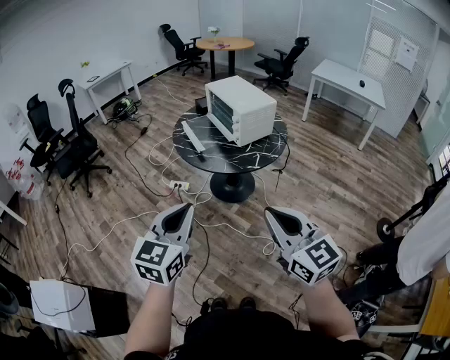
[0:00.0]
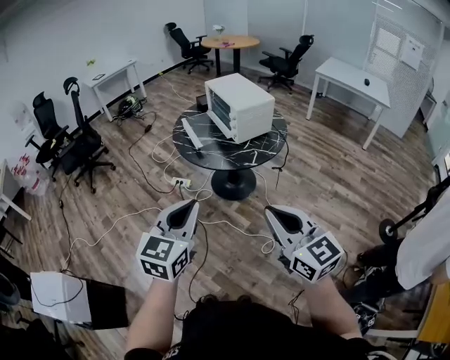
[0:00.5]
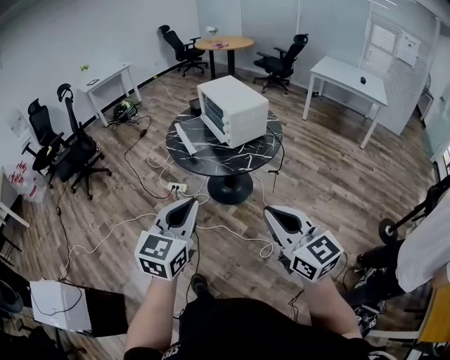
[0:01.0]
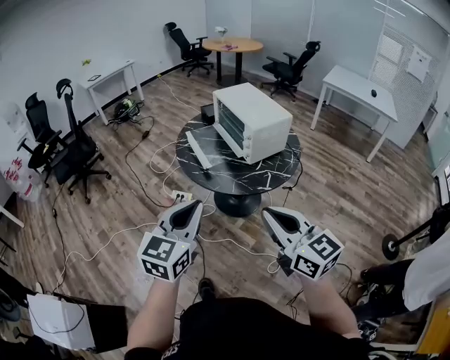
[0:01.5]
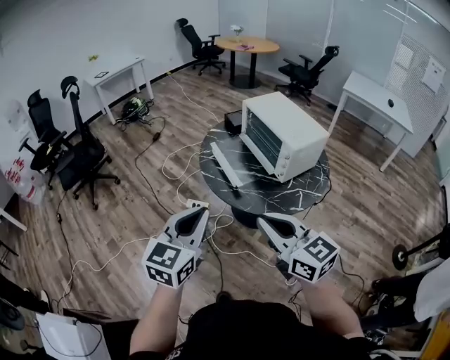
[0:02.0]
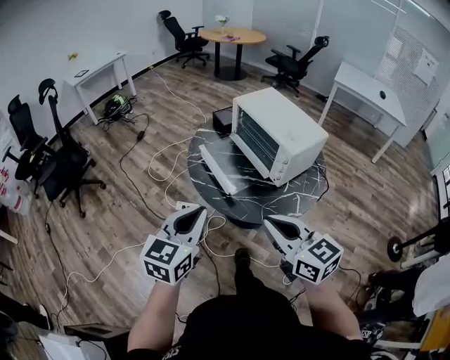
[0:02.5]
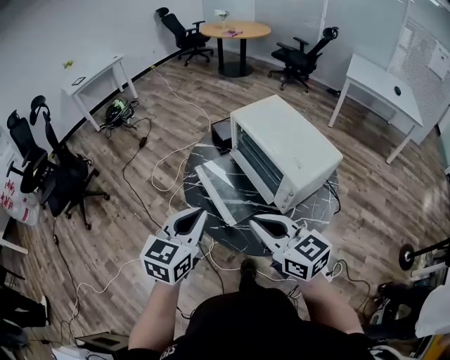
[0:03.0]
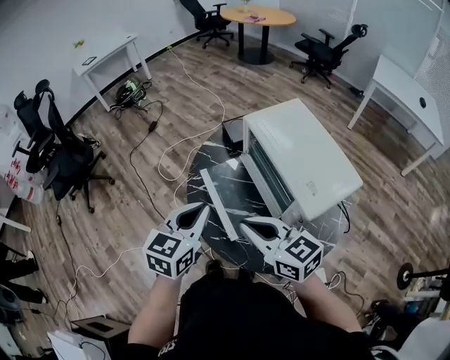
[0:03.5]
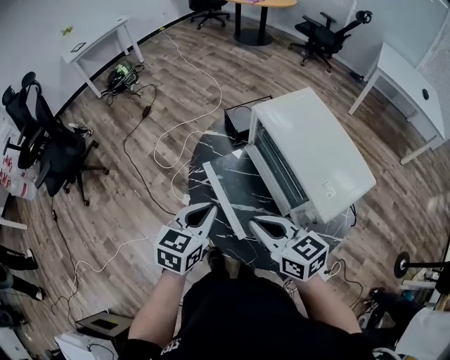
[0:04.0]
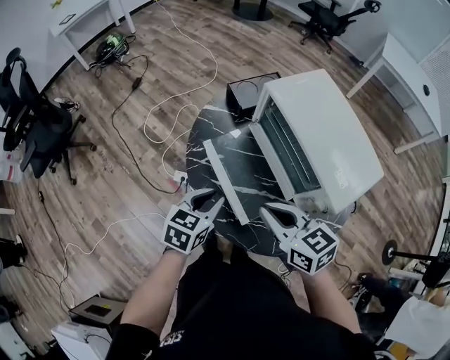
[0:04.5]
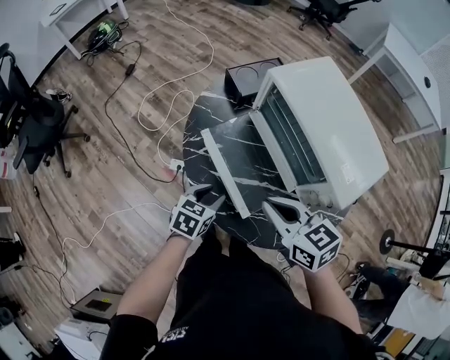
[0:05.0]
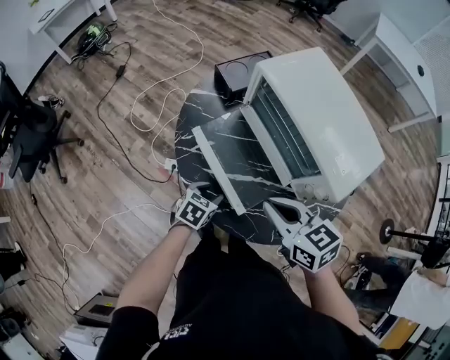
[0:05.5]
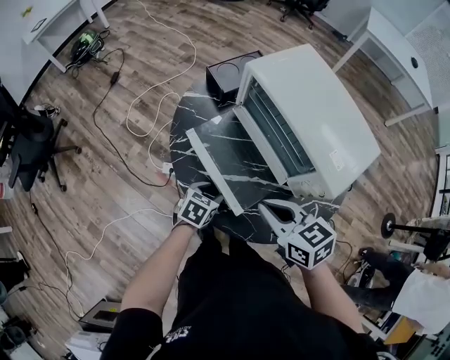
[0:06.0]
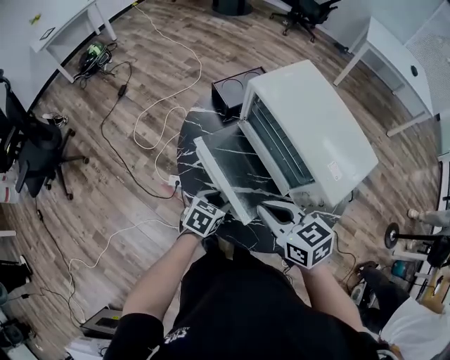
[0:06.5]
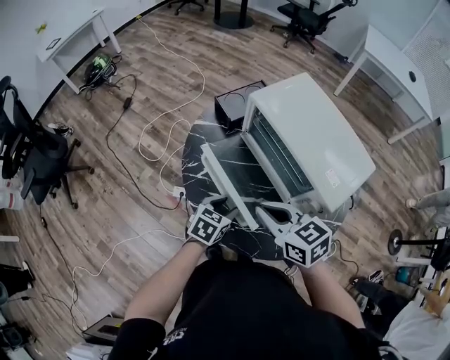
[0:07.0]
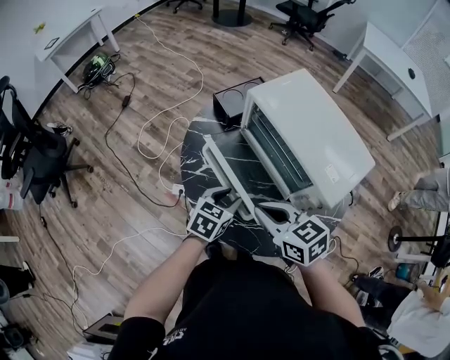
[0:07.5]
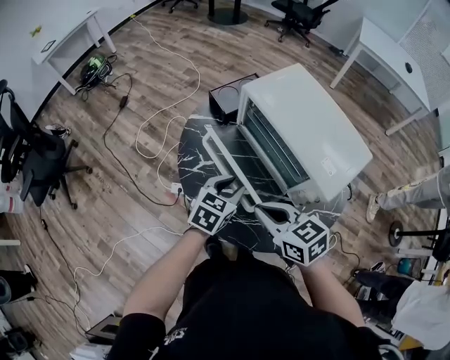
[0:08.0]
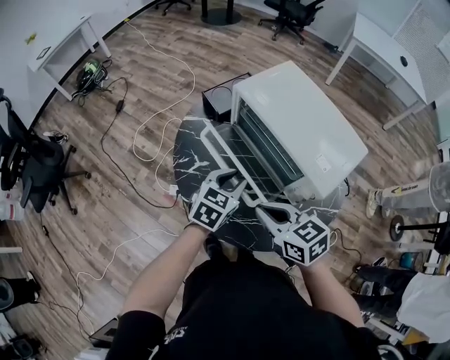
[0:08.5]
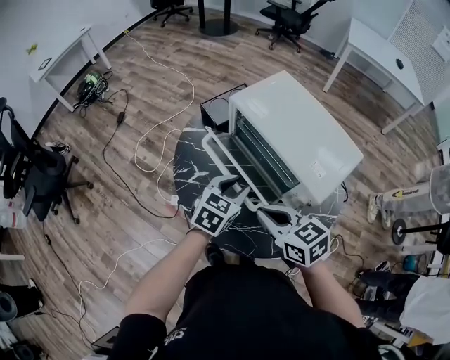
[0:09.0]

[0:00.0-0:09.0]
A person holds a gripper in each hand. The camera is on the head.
0:00.0 to 0:02.0: The left gripper moves forward, some 25 cm. The right gripper travels forward and to the left by about 35 cm.
0:02.0 to 0:04.5: The two grippers go roughly 40 cm forward and downward. The right gripper swivels roughly 20 degrees, while the left gripper turns by approximately 30 degrees, and opens up.
0:04.5 to 0:07.0: The left gripper goes about 10 cm downward and to the right, and opens.
0:07.0 to 0:09.0: The left gripper is displaced upward and to the right by some 10 cm.

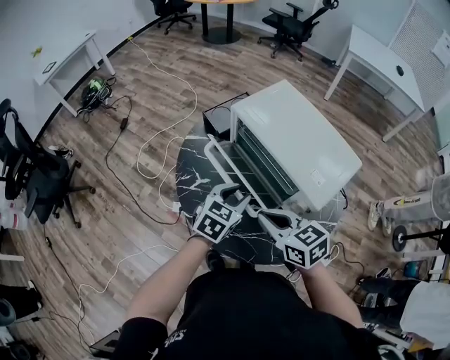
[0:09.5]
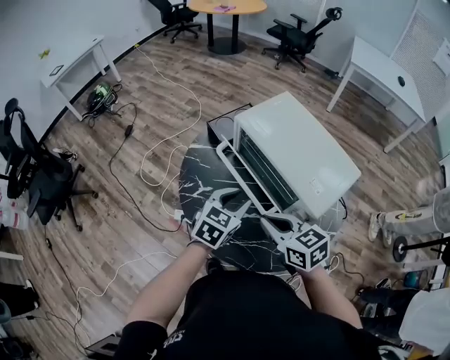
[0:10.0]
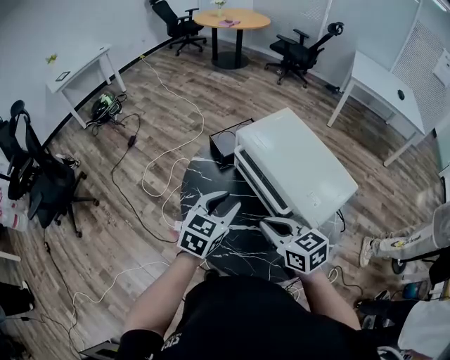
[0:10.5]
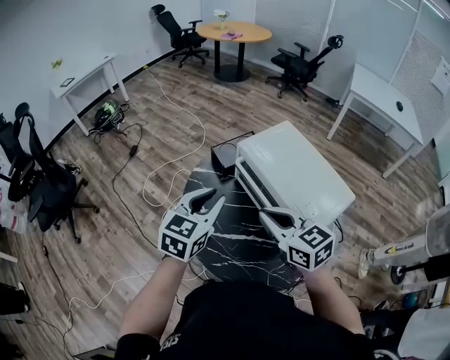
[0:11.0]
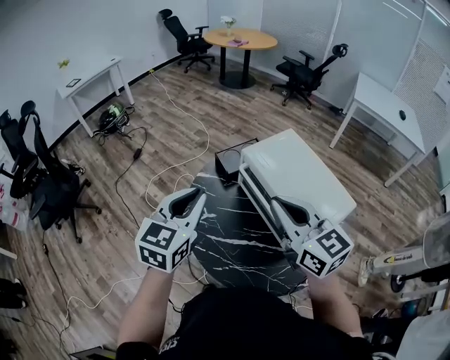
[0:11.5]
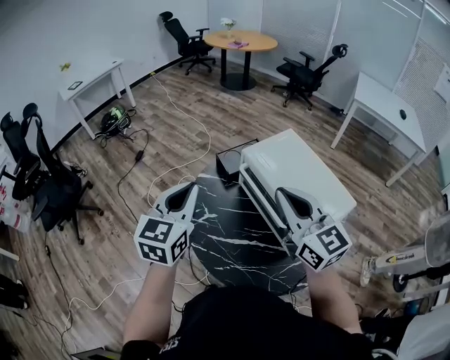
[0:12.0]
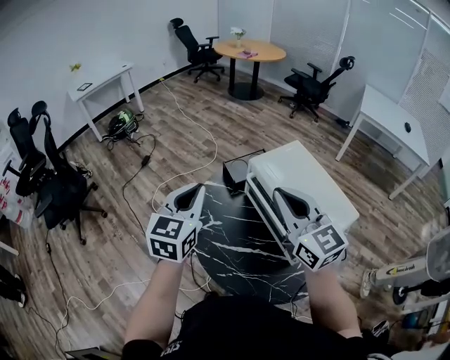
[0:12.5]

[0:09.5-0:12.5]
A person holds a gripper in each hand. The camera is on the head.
0:09.5 to 0:11.0: The right gripper heads upward and forward, covering about 10 cm, while the left gripper heads upward and to the left, covering approximately 15 cm.
0:11.0 to 0:12.5: The right gripper moves upward, about 10 cm, and turns by some 20 degrees. Meanwhile the left gripper shifts some 10 cm to the left and upward.

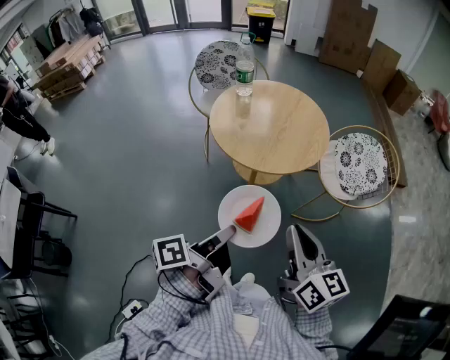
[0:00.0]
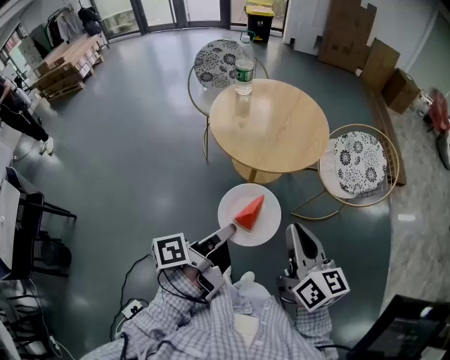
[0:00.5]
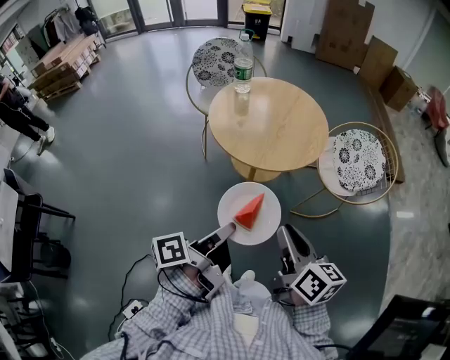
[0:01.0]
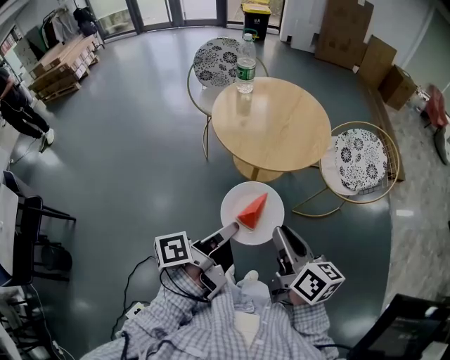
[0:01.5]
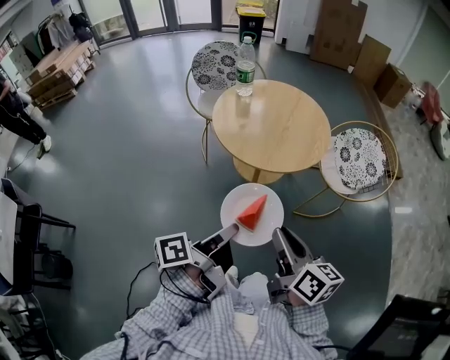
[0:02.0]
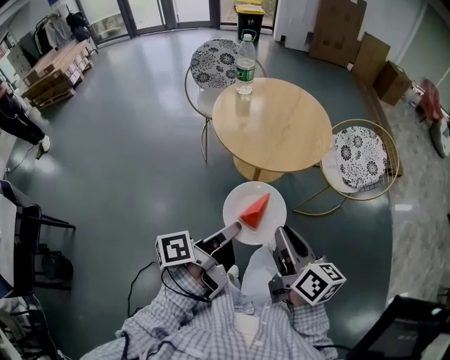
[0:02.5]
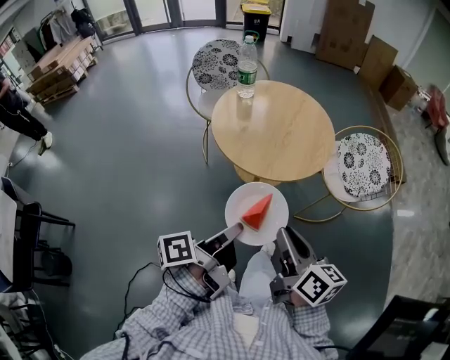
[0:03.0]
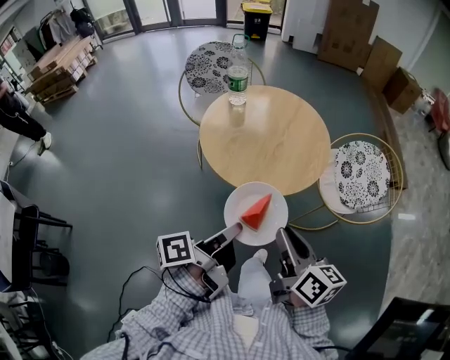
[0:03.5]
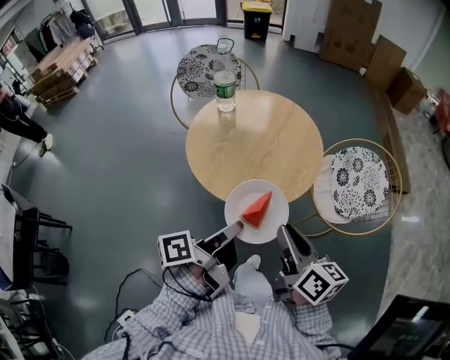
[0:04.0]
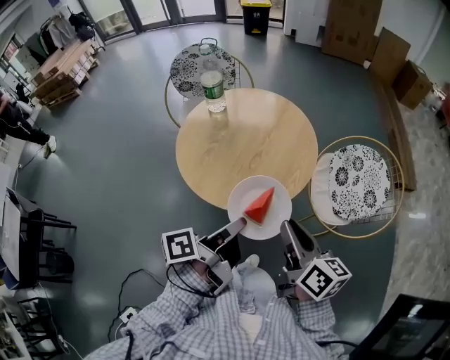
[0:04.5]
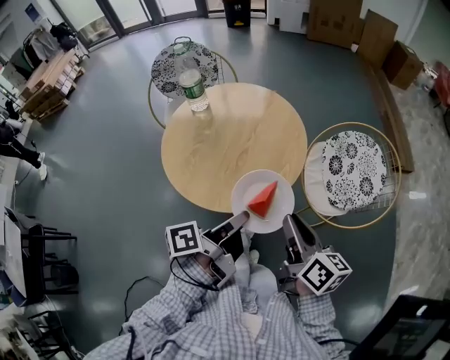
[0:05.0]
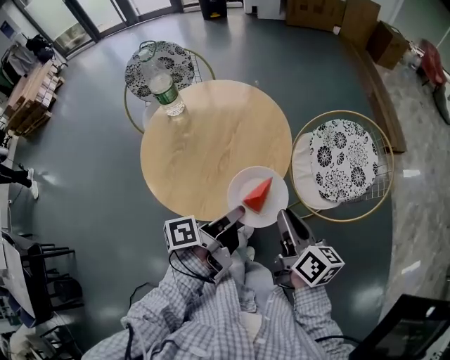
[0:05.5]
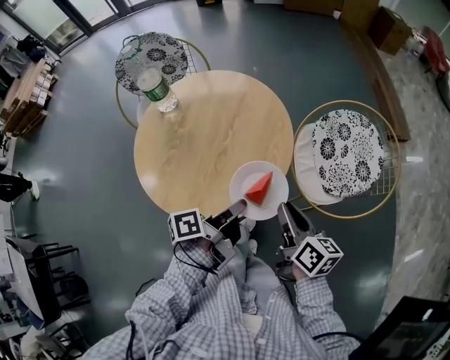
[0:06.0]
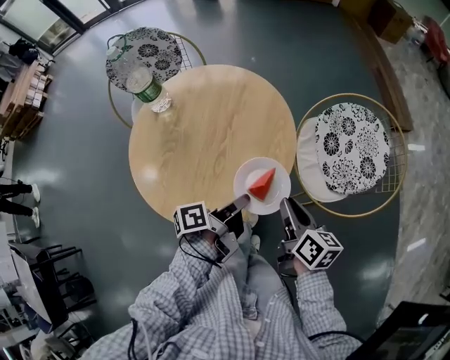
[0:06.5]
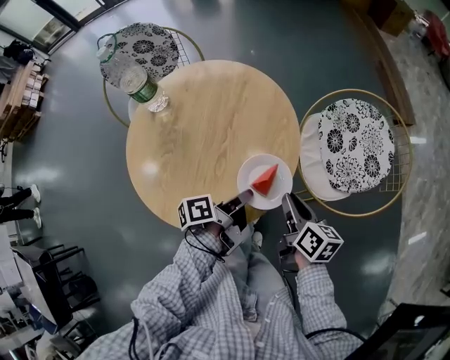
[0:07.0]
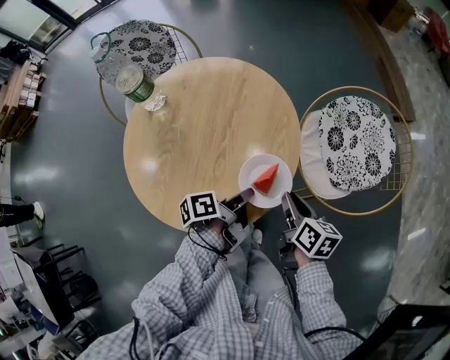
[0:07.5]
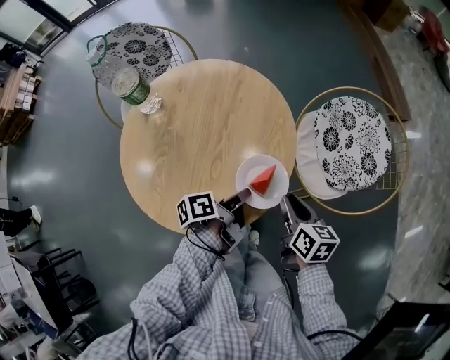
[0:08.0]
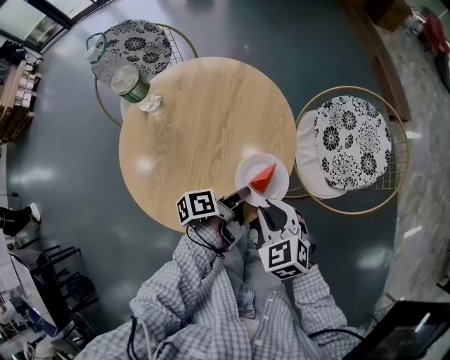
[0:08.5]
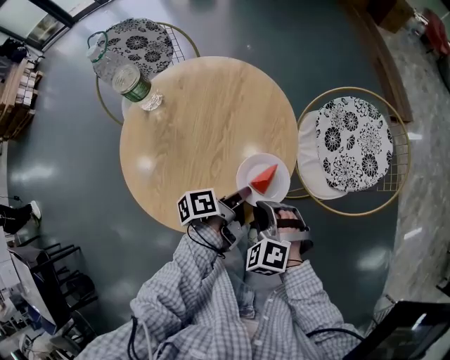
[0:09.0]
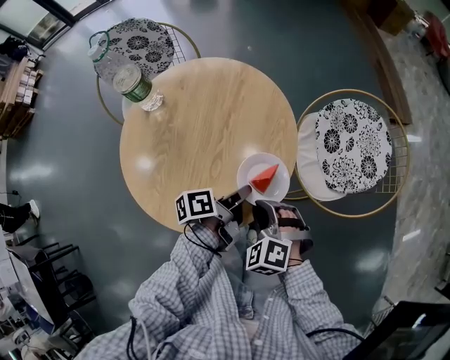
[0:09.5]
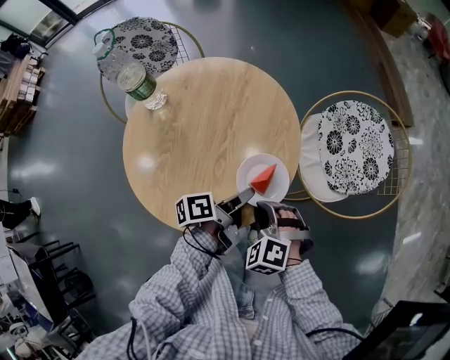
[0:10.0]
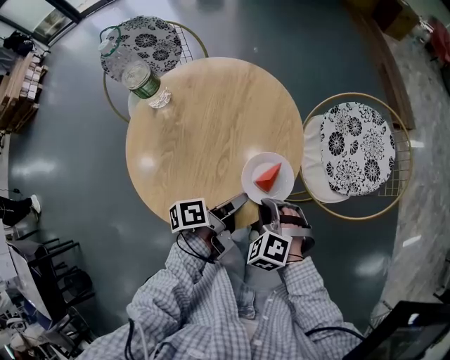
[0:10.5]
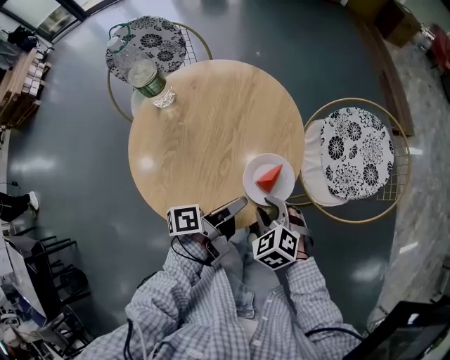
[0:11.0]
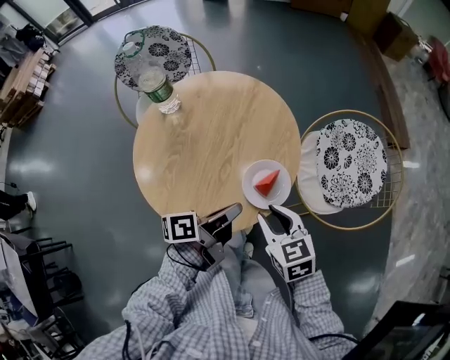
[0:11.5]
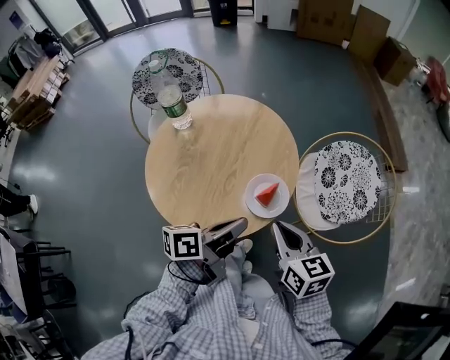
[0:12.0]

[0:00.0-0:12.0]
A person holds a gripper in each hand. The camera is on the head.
0:00.0 to 0:02.0: The right gripper ends up approximately 10 cm from where it was.
0:02.0 to 0:04.0: The right gripper changes place by about 20 cm.
0:04.0 to 0:06.0: The right gripper changes place by some 20 cm.
0:06.0 to 0:08.0: The right gripper moves downward, some 10 cm.
0:08.0 to 0:10.0: The right gripper moves approximately 10 cm, and rotates around the line of its fingers by roughly 90 degrees, counterclockwise from behind.
0:10.0 to 0:12.0: The right gripper travels upward by roughly 15 cm, and rotates around the line of its fingers by some 60 degrees, clockwise from behind.

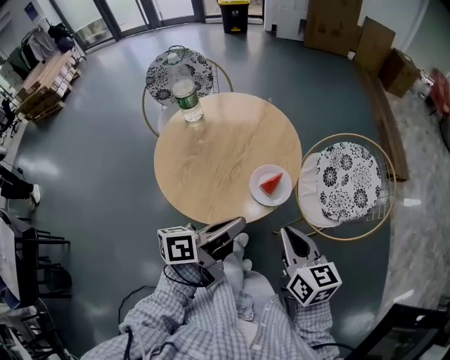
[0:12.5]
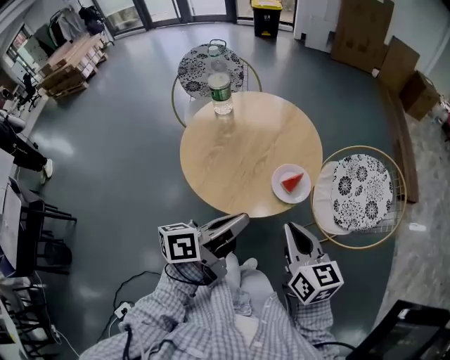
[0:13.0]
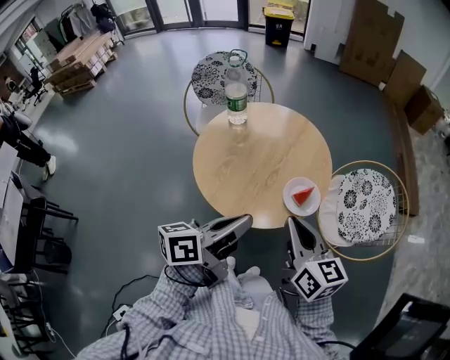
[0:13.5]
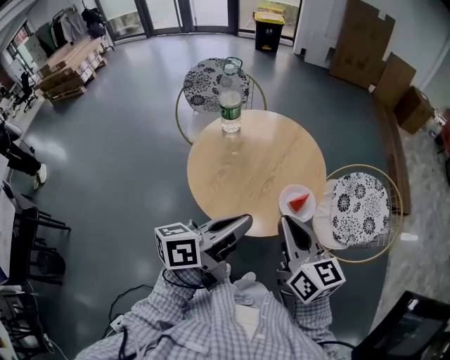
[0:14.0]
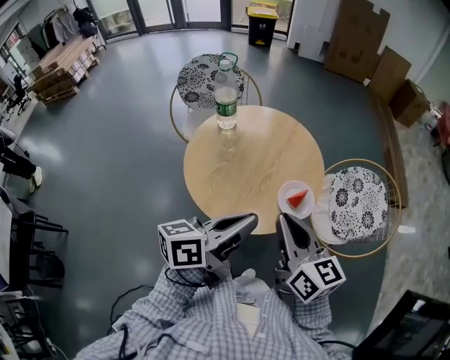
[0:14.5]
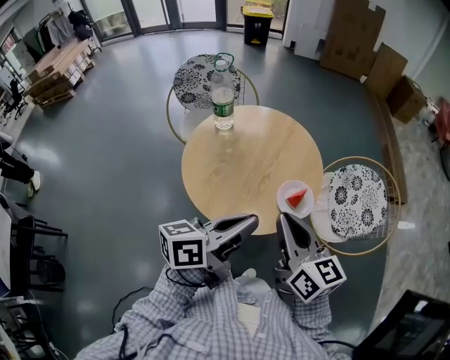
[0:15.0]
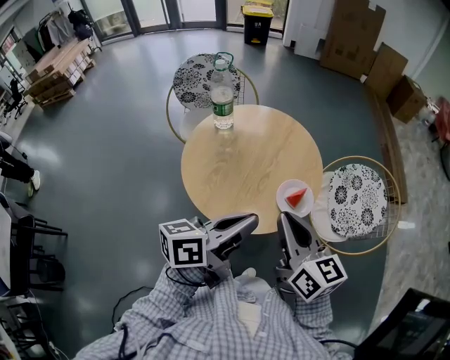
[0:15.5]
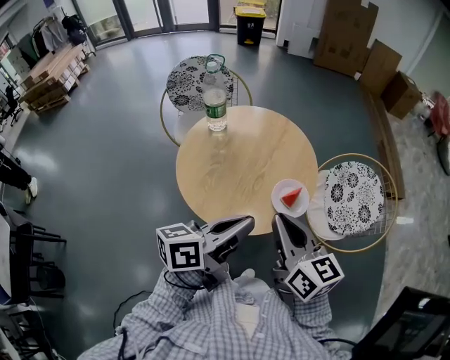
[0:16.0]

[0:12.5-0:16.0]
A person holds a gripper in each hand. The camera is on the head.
0:12.5 to 0:14.5: The right gripper changes place by some 15 cm.
